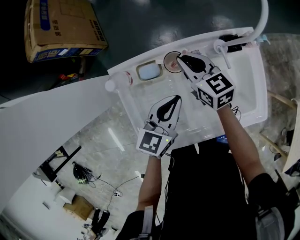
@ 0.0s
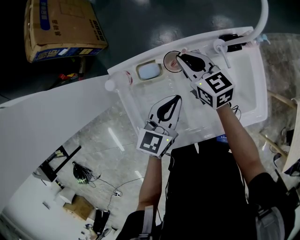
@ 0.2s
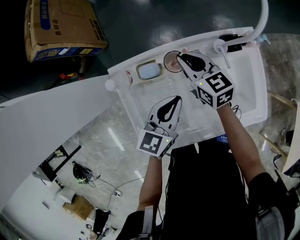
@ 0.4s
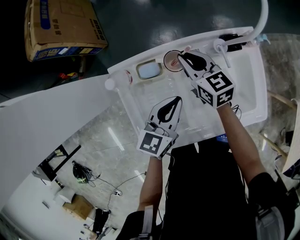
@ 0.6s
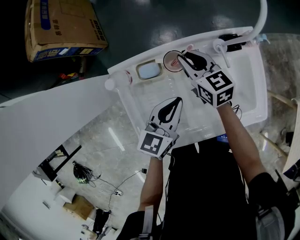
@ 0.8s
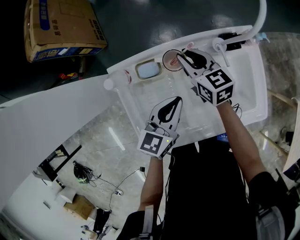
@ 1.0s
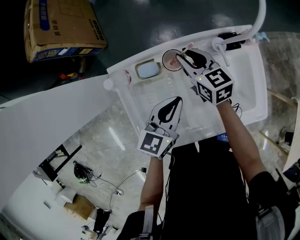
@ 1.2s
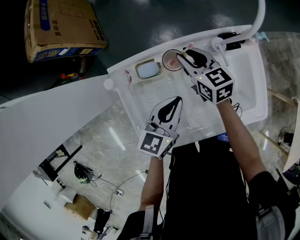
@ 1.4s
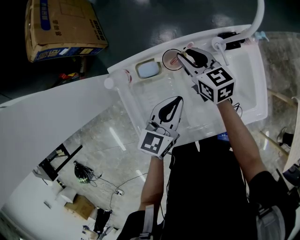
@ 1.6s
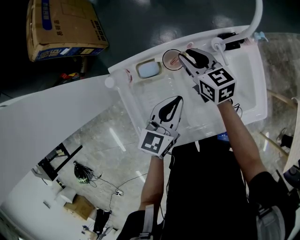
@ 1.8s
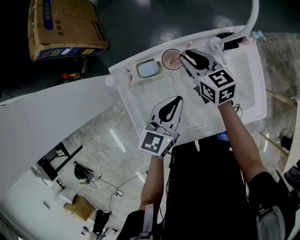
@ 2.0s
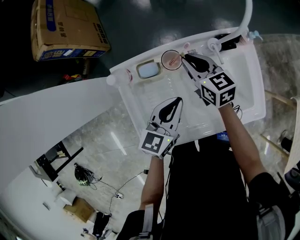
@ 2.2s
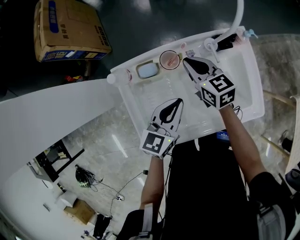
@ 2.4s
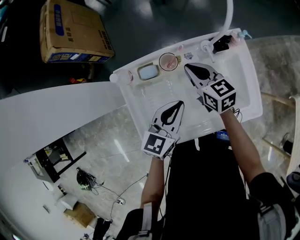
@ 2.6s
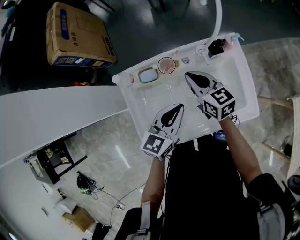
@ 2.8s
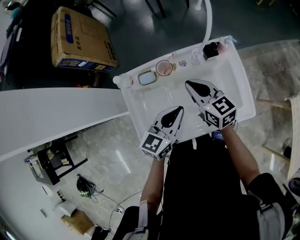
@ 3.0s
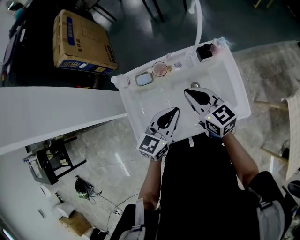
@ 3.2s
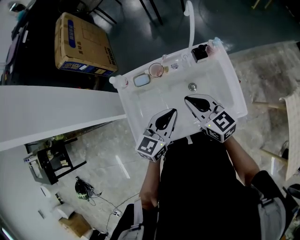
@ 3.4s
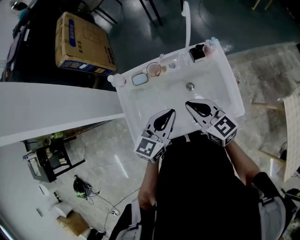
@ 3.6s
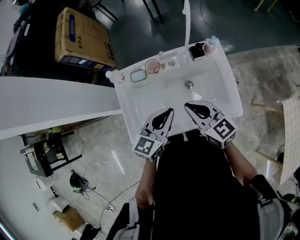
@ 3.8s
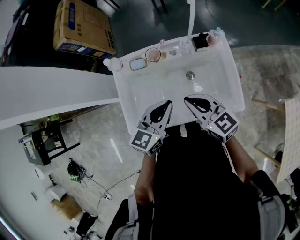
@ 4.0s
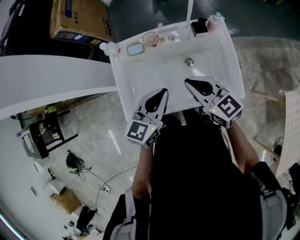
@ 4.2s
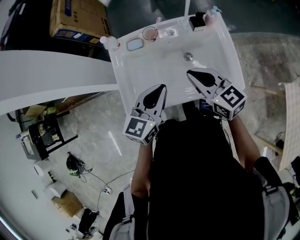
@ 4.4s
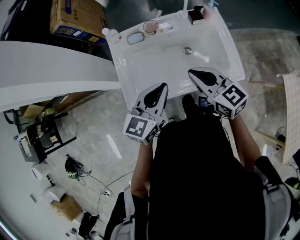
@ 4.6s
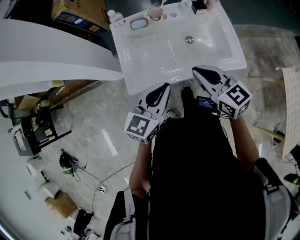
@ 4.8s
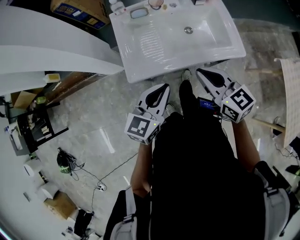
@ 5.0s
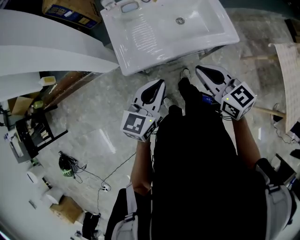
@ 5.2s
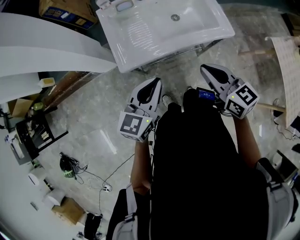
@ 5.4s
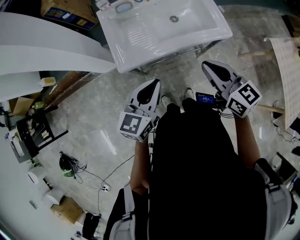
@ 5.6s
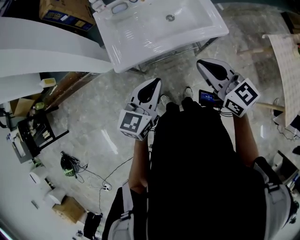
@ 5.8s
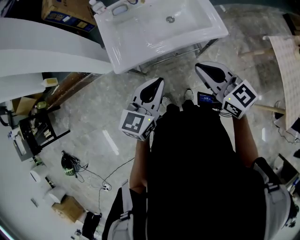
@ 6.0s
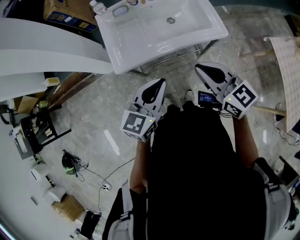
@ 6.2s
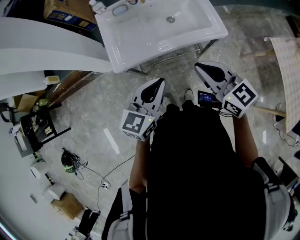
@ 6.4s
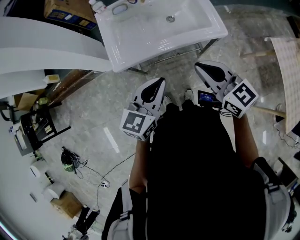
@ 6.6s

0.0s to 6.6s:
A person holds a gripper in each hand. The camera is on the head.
0.0s to 1.6s: The grippers move only a little.
1.6s to 3.2s: The right gripper heads backward, upward and to the right, covering about 20 cm, and closes up. Meanwhile the left gripper heads upward, backward and to the right, covering roughly 10 cm.
3.2s to 5.0s: Both grippers travel together backward, some 25 cm.
5.0s to 6.6s: The left gripper is displaced to the right and backward by about 10 cm; the right gripper is displaced backward and to the right by about 15 cm.

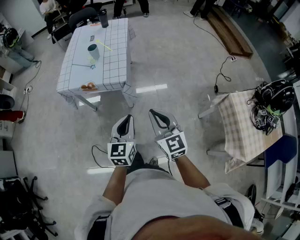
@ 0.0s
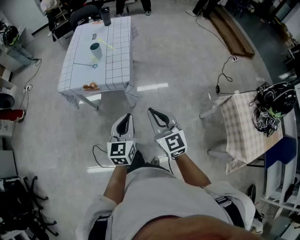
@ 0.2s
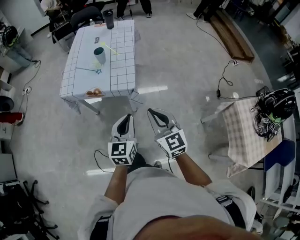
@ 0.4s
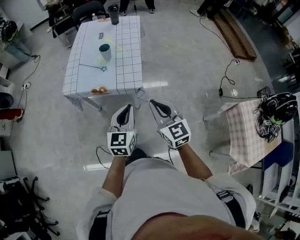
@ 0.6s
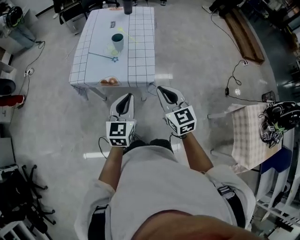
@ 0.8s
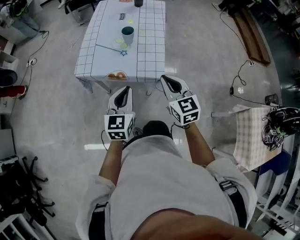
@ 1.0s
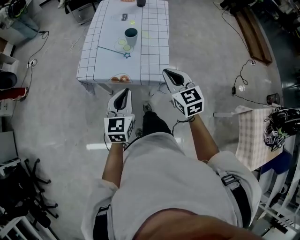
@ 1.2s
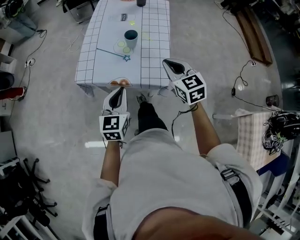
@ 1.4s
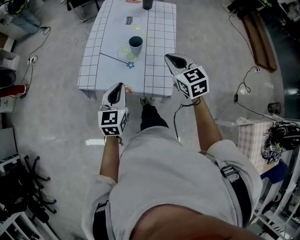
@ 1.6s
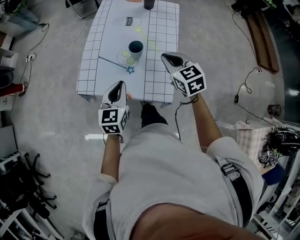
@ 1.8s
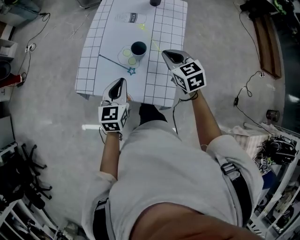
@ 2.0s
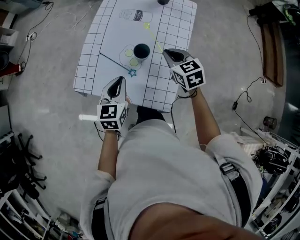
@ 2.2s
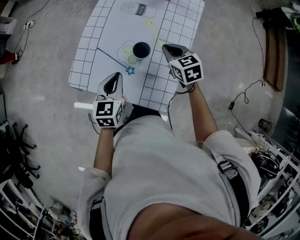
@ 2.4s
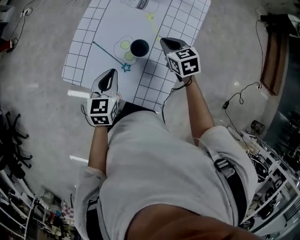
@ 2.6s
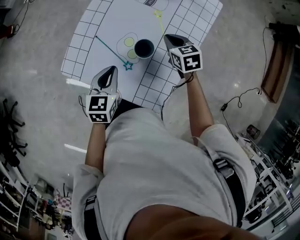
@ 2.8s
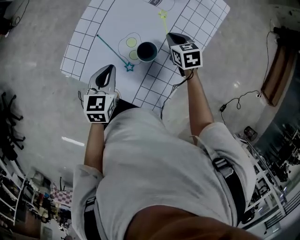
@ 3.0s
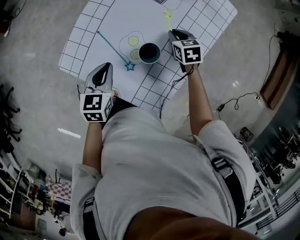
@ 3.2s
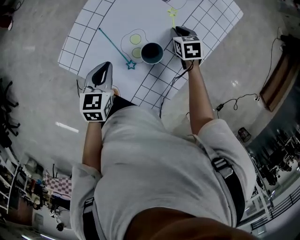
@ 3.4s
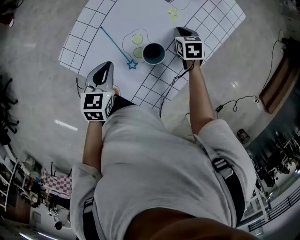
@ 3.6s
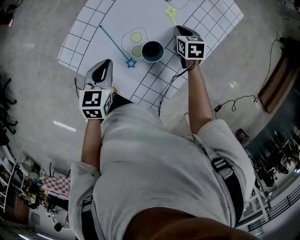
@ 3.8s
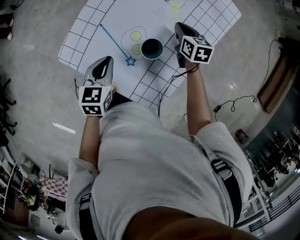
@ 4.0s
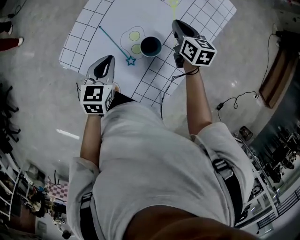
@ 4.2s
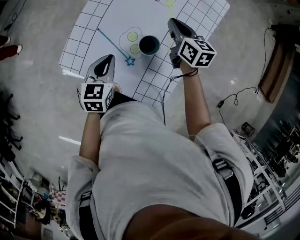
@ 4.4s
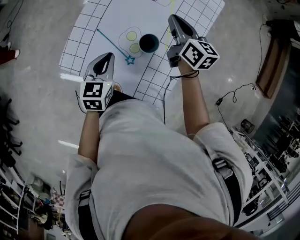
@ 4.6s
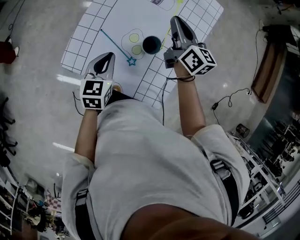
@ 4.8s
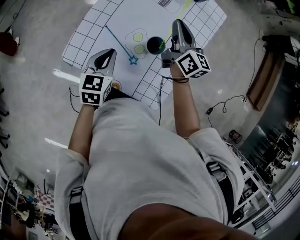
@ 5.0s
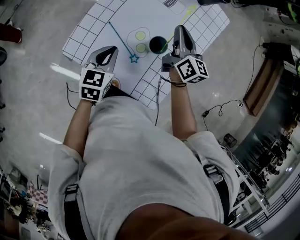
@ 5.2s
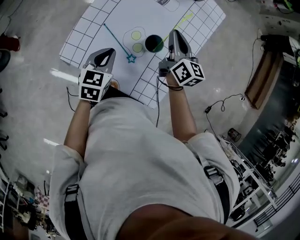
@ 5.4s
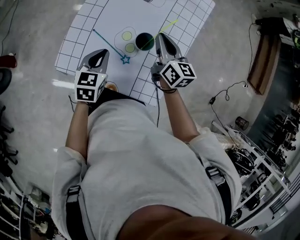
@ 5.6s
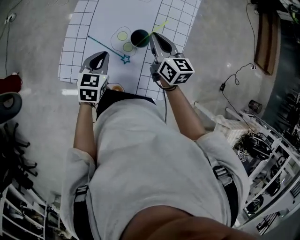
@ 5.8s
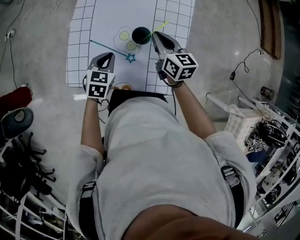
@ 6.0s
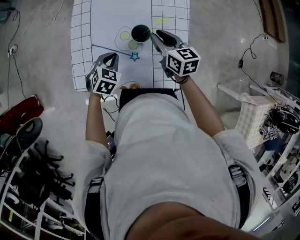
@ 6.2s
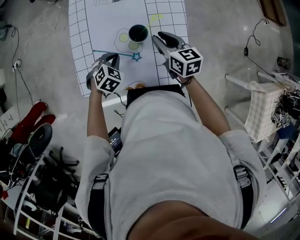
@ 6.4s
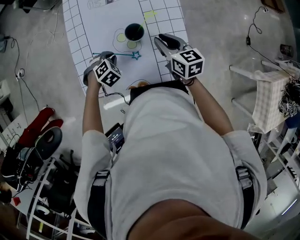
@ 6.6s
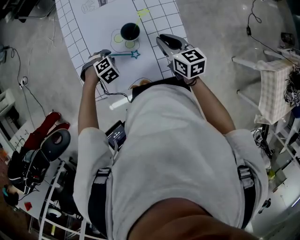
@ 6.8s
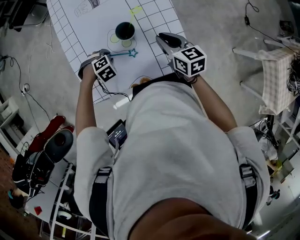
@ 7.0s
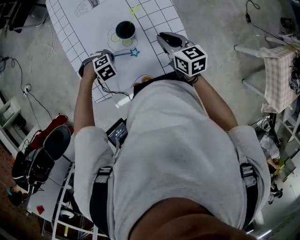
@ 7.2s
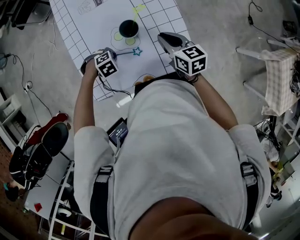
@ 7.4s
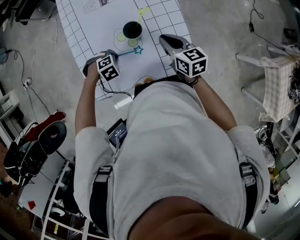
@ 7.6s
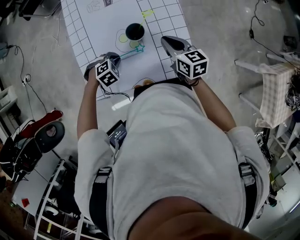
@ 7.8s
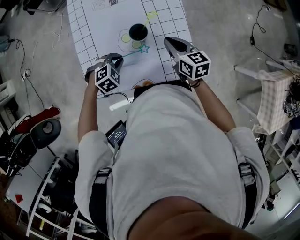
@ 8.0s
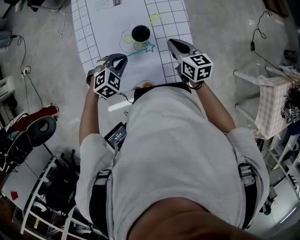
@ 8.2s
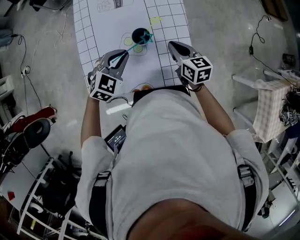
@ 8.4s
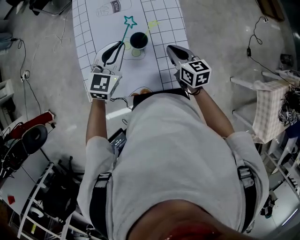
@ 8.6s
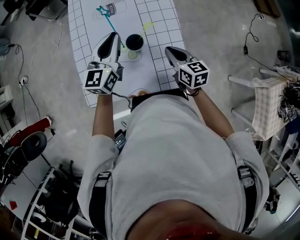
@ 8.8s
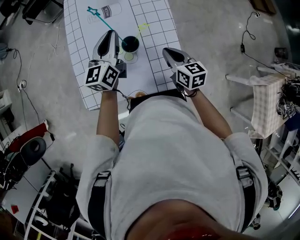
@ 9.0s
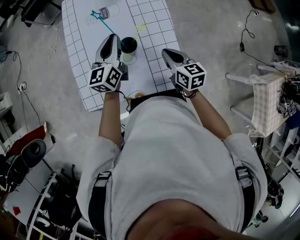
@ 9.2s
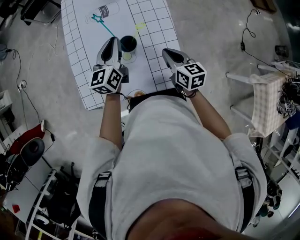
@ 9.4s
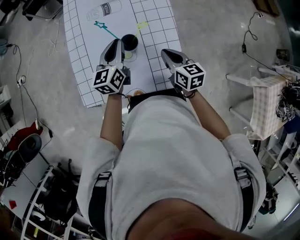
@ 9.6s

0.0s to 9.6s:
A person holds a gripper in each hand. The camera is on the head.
0.0s to 1.6s: The two grippers travel together, forward and to the left, roughly 50 cm. The right gripper turns by some 20 degrees.
1.6s to 3.2s: The right gripper is displaced forward and downward by about 40 cm, and turns by approximately 30 degrees. The left gripper goes about 25 cm forward and downward, and changes its angle by some 30 degrees.
3.2s to 4.8s: The right gripper travels upward by approximately 20 cm, and tilts its fingers roughly 40 degrees upward.
4.8s to 6.4s: The left gripper goes roughly 10 cm downward, and rolls clockwise, seen from behind, by some 60 degrees. Meanwhile the right gripper goes about 15 cm backward and downward, swivels approximately 20 degrees, and opens up.
6.4s to 8.0s: The left gripper rotates approximately 30 degrees, and opens, then closes again; the right gripper moves approximately 5 cm, and closes.
8.0s to 9.6s: The left gripper travels upward and forward by about 15 cm, and points its fingers approximately 50 degrees further upward.

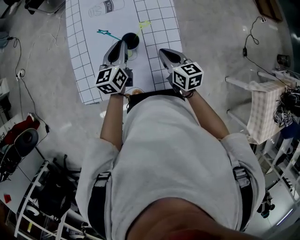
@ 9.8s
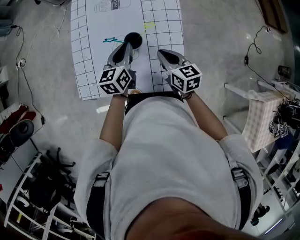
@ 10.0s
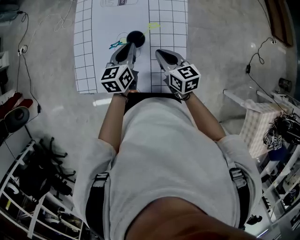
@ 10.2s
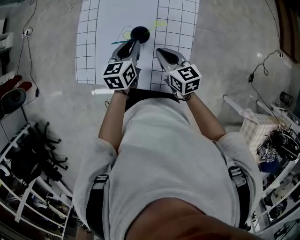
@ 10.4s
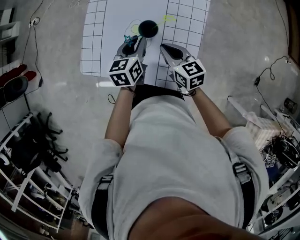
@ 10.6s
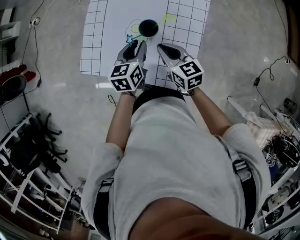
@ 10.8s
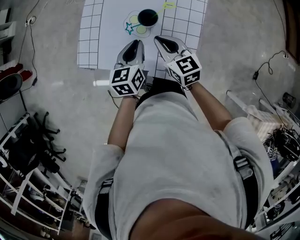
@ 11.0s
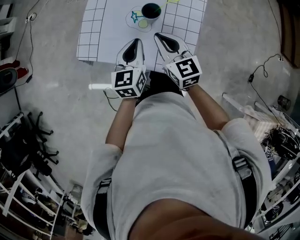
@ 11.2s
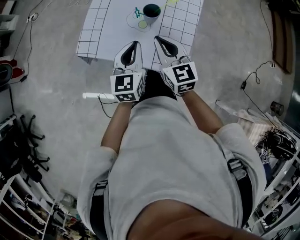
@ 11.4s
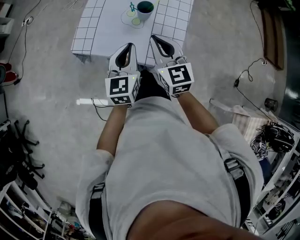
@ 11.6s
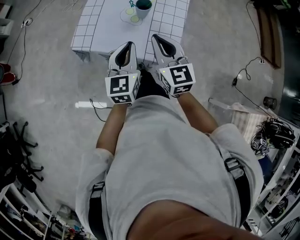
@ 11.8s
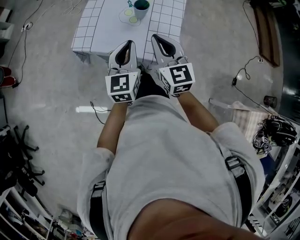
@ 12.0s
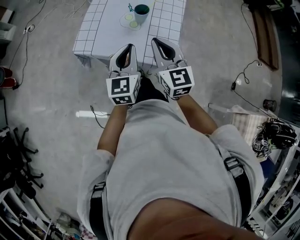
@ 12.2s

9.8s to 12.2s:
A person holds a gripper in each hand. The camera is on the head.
9.8s to 11.0s: The right gripper shifts approximately 10 cm to the left, and changes its angle by about 30 degrees, while the left gripper heads backward, covering approximately 10 cm.
11.0s to 12.2s: Both grippers travel together backward and upward, approximately 25 cm. The left gripper rotates approximately 30 degrees; the right gripper changes its angle by about 30 degrees.

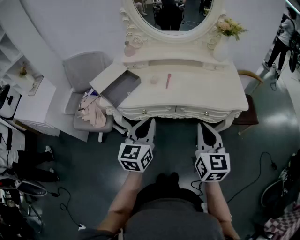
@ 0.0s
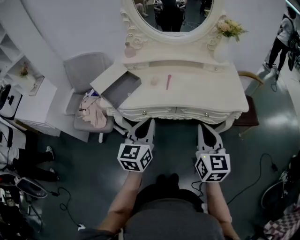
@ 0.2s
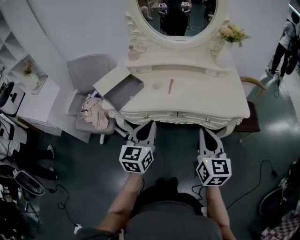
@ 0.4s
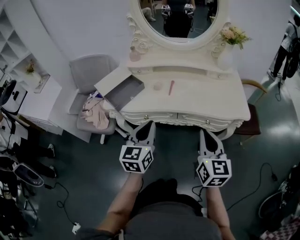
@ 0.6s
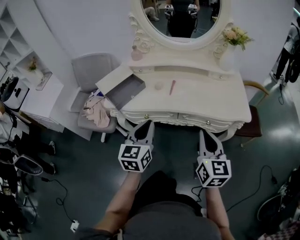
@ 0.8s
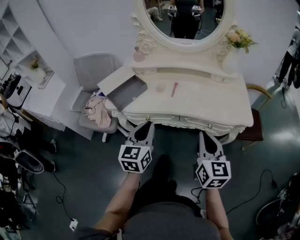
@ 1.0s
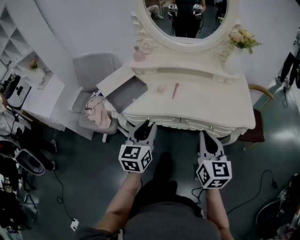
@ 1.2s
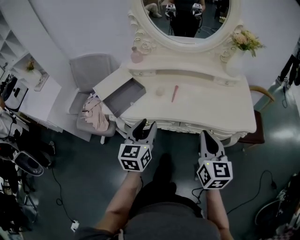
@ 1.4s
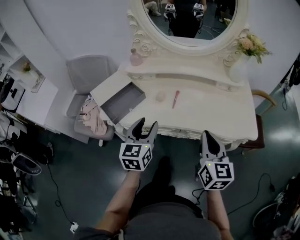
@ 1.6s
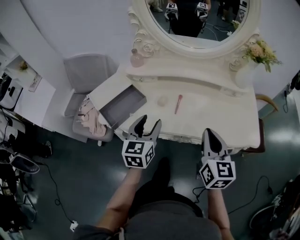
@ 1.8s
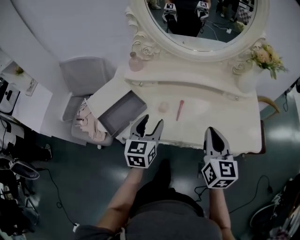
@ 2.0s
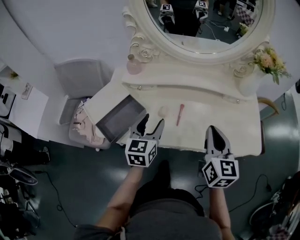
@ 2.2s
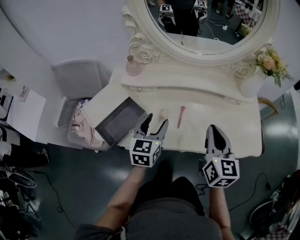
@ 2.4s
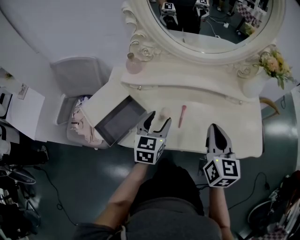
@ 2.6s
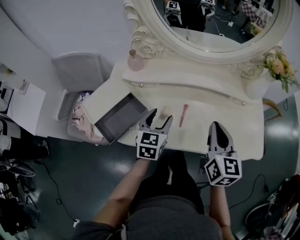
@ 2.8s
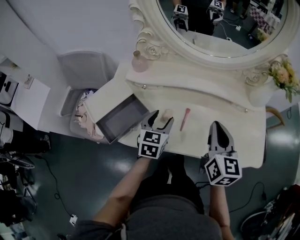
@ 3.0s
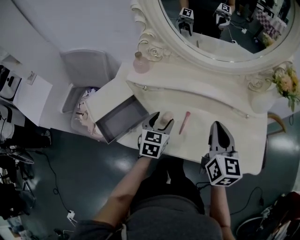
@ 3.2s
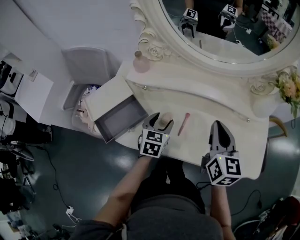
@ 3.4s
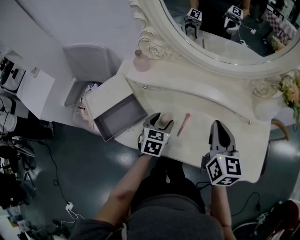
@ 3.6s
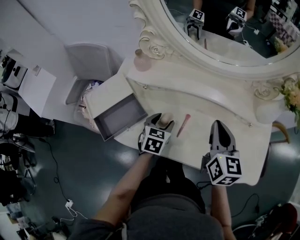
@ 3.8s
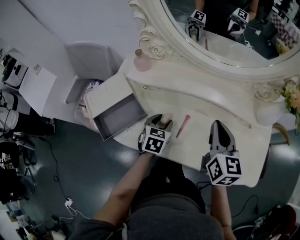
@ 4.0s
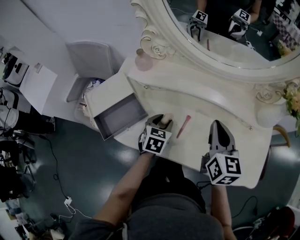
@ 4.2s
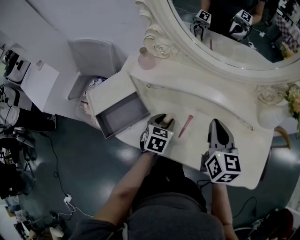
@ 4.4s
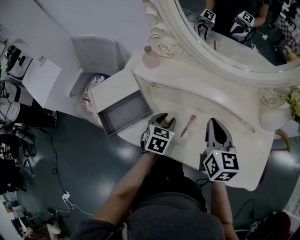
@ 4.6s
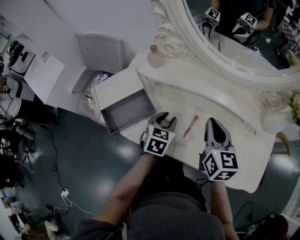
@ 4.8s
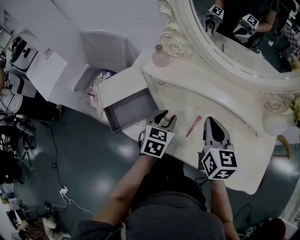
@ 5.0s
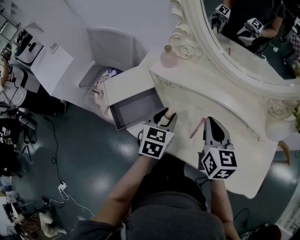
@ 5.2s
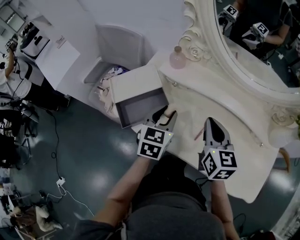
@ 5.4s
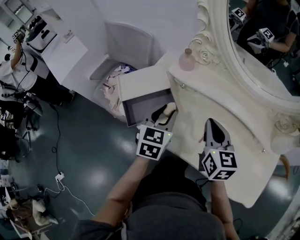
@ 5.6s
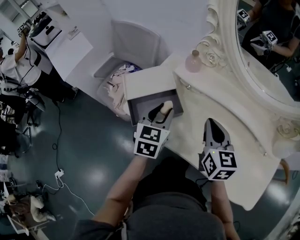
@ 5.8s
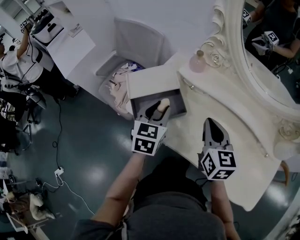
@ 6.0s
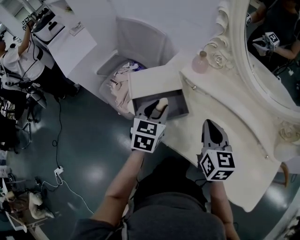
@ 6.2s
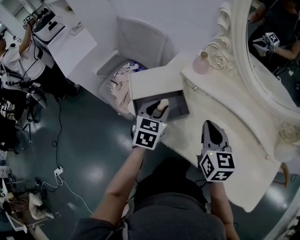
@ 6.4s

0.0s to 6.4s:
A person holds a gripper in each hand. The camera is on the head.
0.0s to 1.6s: The two grippers go roughly 10 cm forward. The left gripper opens its fingers.
1.6s to 3.2s: The left gripper travels forward and downward by roughly 20 cm. Meanwhile the right gripper moves forward, roughly 20 cm.
3.2s to 4.8s: The right gripper is displaced forward by about 5 cm, while the left gripper closes up.
4.8s to 6.4s: Both grippers move to the left, approximately 15 cm.
